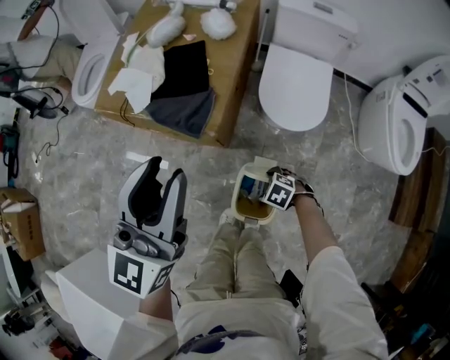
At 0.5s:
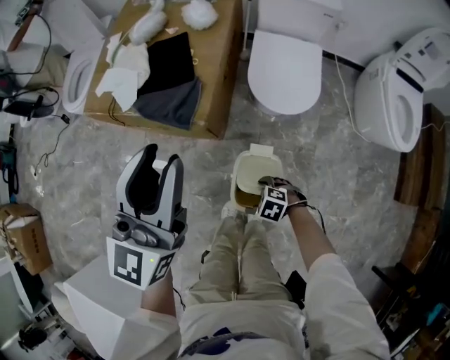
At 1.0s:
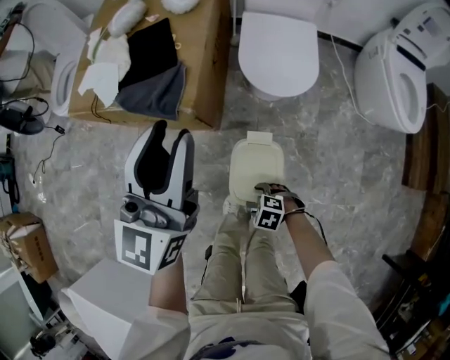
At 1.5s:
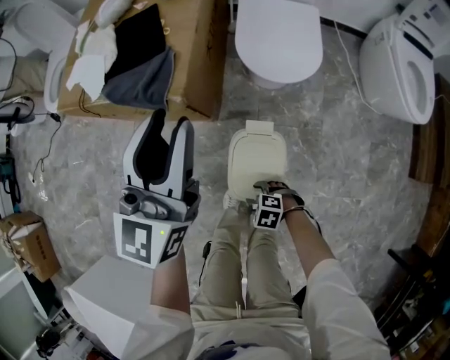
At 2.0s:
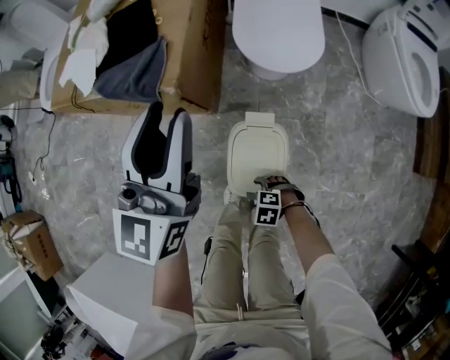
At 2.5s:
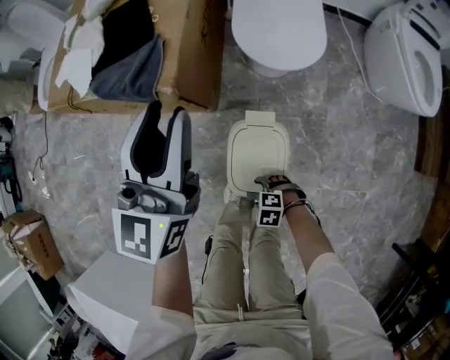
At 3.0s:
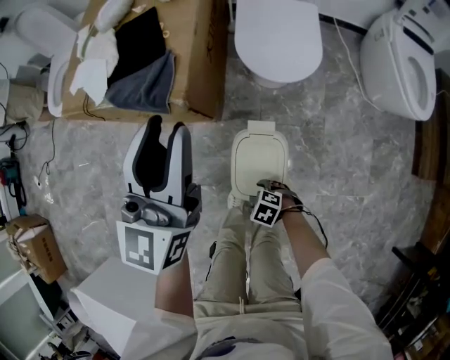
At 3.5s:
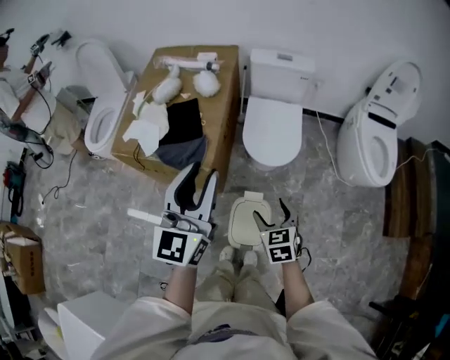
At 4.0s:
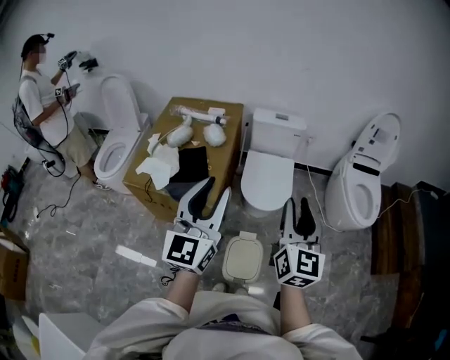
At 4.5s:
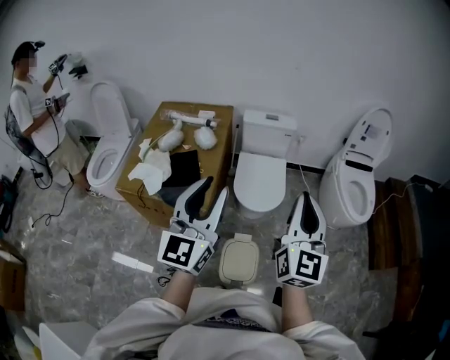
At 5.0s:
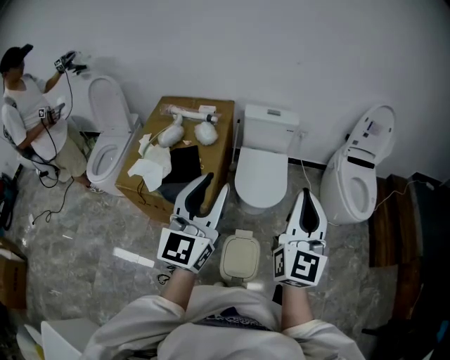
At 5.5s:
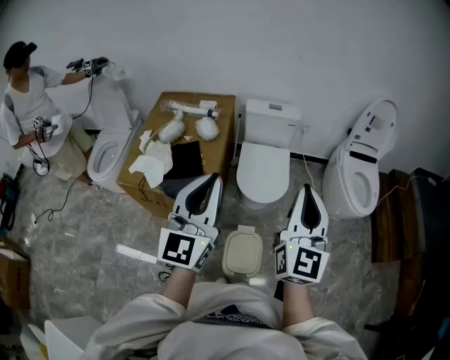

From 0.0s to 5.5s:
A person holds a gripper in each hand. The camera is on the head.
From 0.0s to 2.0s: The right gripper changes place by approximately 25 cm. The left gripper is displaced downward by approximately 20 cm.
From 2.0s to 3.5s: The right gripper moves upward, about 40 cm, and changes its angle by approximately 70 degrees; the left gripper heads upward, covering about 20 cm.
From 3.5s to 5.5s: The right gripper shifts some 35 cm upward, angles its fingers upward, by some 50 degrees, and closes up. The left gripper travels upward by about 10 cm, and closes its fingers.

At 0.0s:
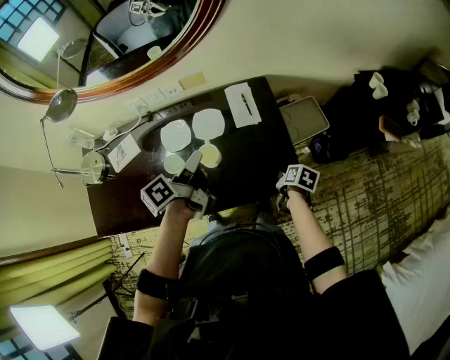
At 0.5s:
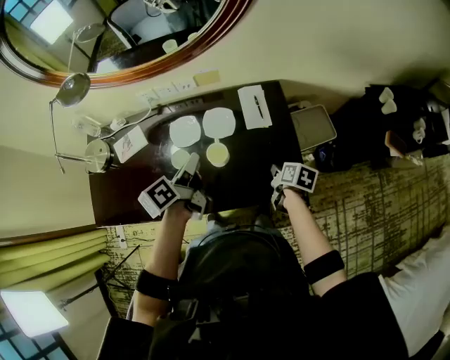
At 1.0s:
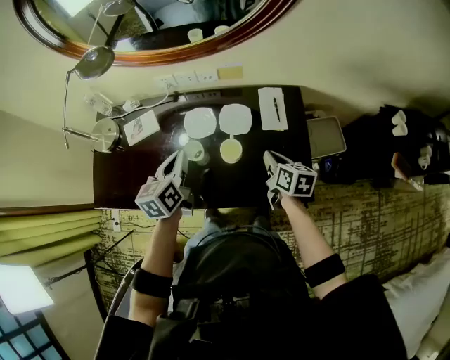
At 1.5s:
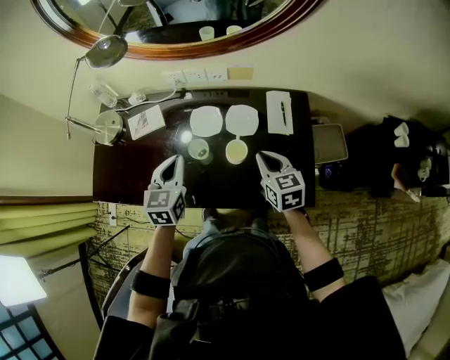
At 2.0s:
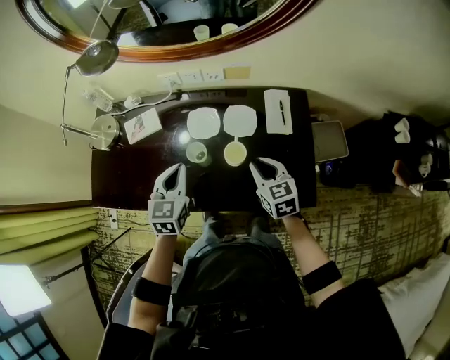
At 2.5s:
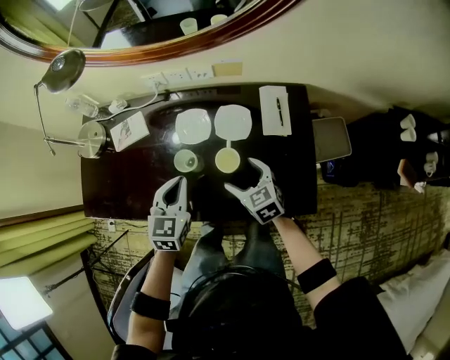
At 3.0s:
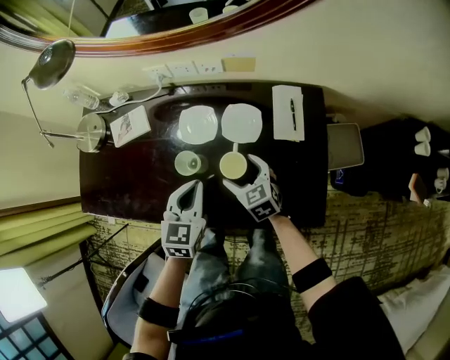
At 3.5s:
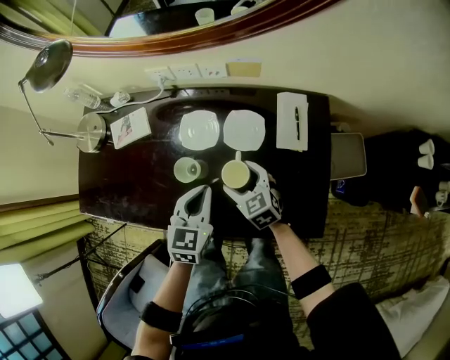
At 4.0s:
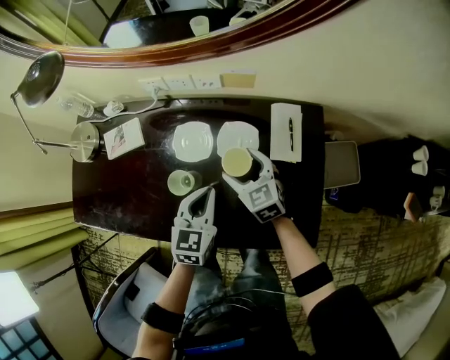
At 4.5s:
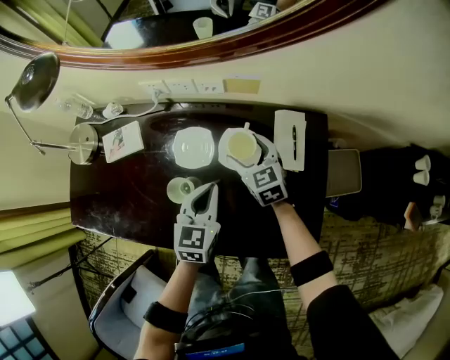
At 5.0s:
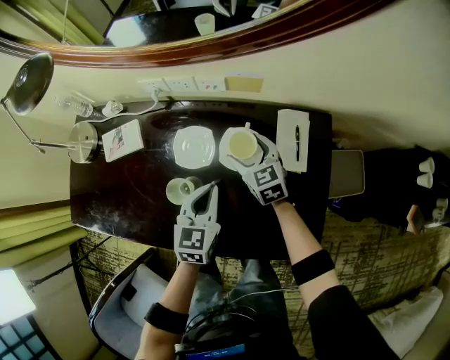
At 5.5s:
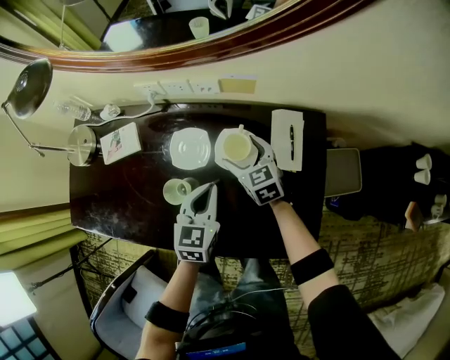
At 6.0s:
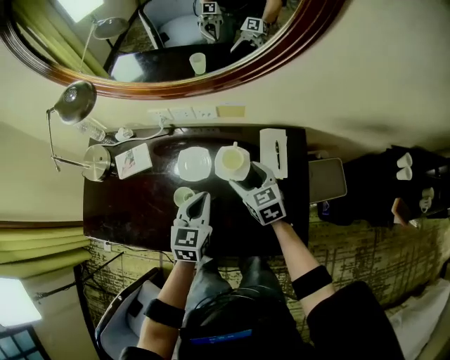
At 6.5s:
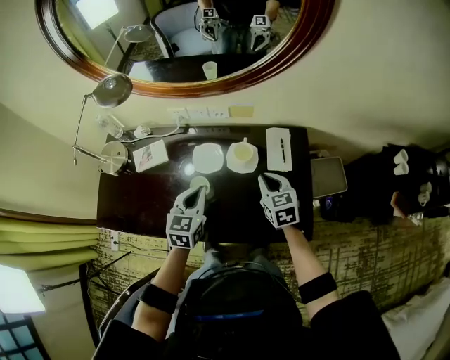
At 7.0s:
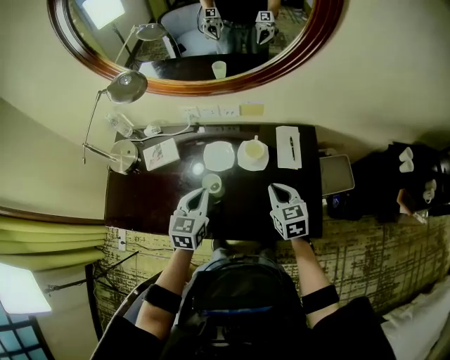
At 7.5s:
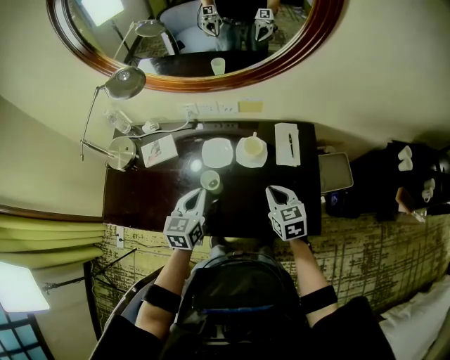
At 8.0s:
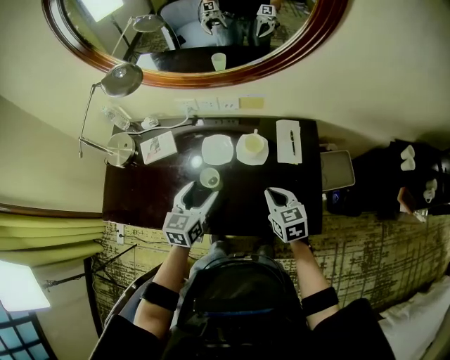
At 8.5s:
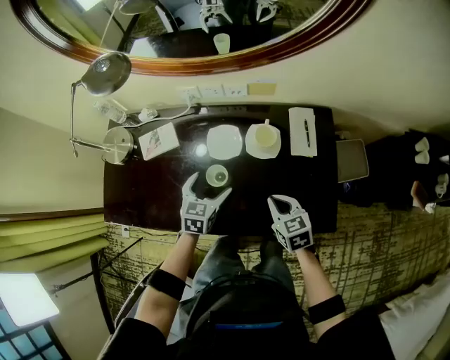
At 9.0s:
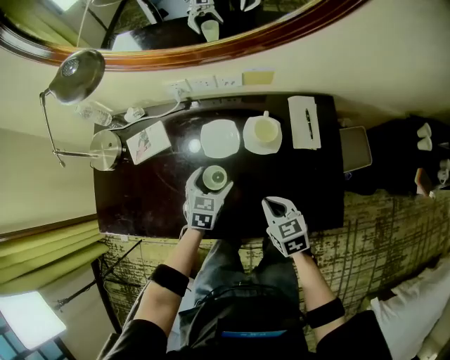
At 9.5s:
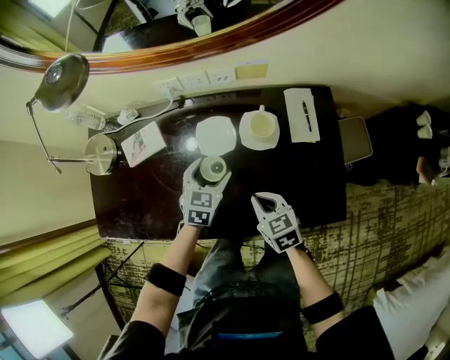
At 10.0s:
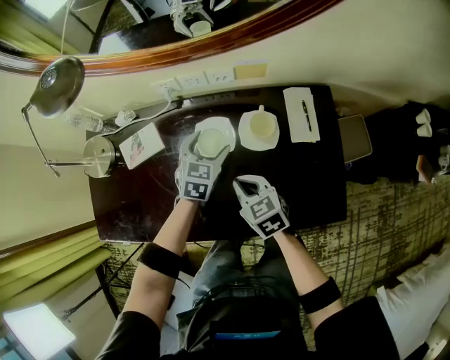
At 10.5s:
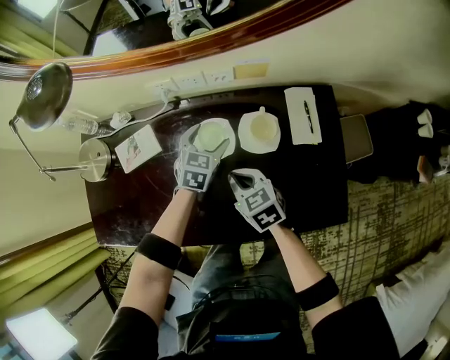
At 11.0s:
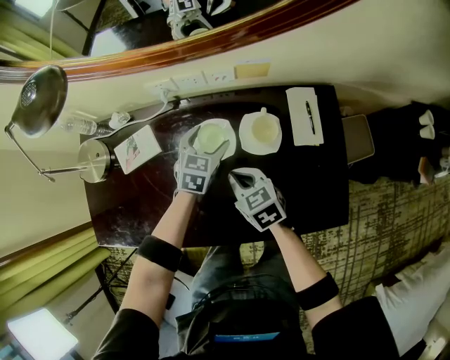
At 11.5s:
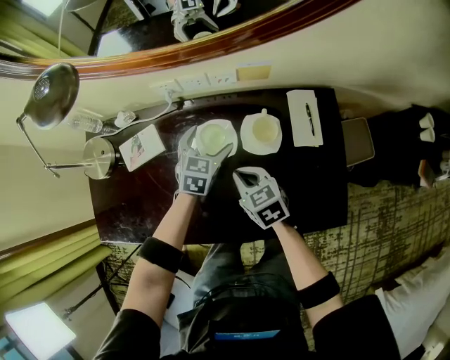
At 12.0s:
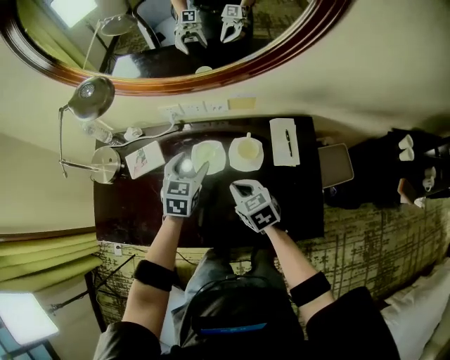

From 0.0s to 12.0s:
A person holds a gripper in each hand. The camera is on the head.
From 0.0s to 2.0s: The left gripper heads to the left, covering approximately 15 cm, and rotates around the line of its fingers by about 60 degrees, clockwise from behind. The right gripper shifts about 25 cm to the left, upward and forward, and rolls counterclockwise, seen from behind, by about 60 degrees.
From 2.0s to 4.0s: The left gripper heads to the right and downward, covering roughly 15 cm; the right gripper heads forward and downward, covering roughly 15 cm, and opens up.
From 4.0s to 6.0s: Both grippers travel together upward, roughly 5 cm.
From 6.0s to 8.0s: The left gripper shifts about 10 cm to the left and backward, and opens up; the right gripper shifts about 15 cm backward, and closes.
From 8.0s to 10.0s: The left gripper goes some 20 cm forward and downward, and turns by some 30 degrees; the right gripper shifts roughly 15 cm to the left, downward and forward.
From 10.0s to 12.0s: The right gripper shifts by about 5 cm, while the left gripper shifts roughly 10 cm upward.

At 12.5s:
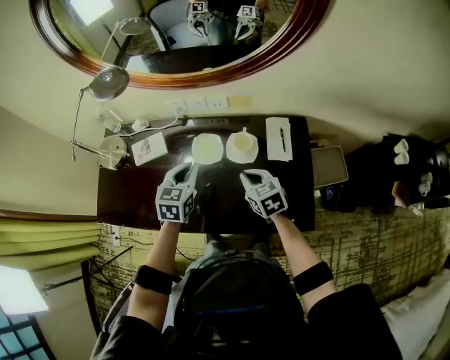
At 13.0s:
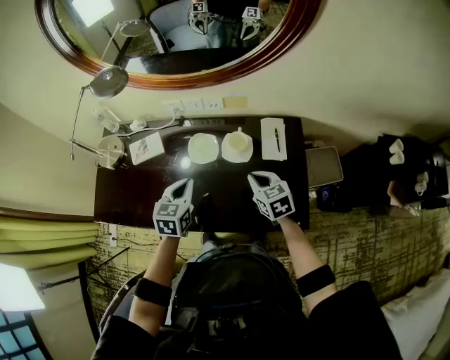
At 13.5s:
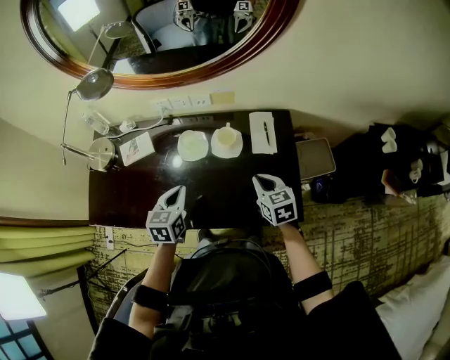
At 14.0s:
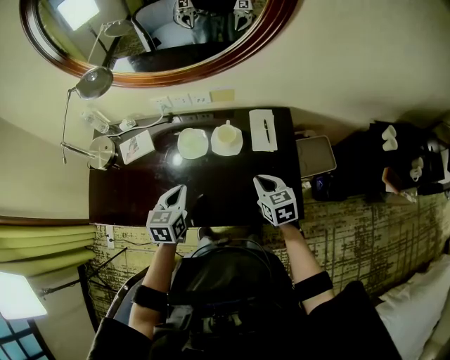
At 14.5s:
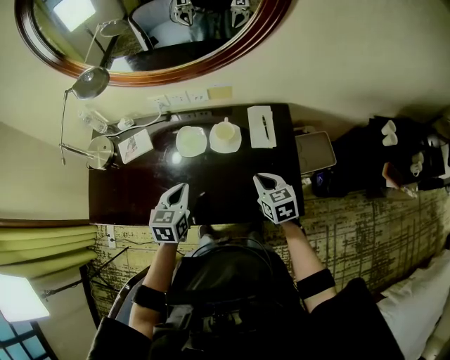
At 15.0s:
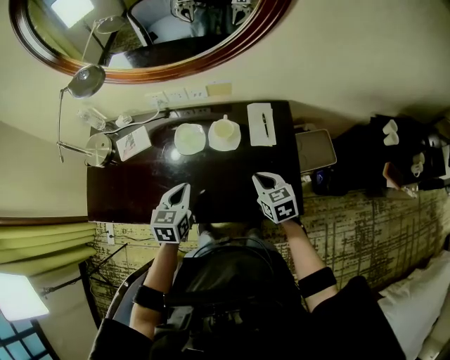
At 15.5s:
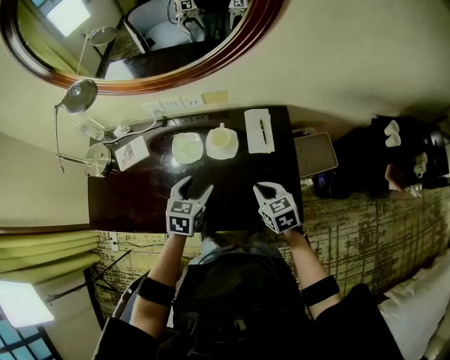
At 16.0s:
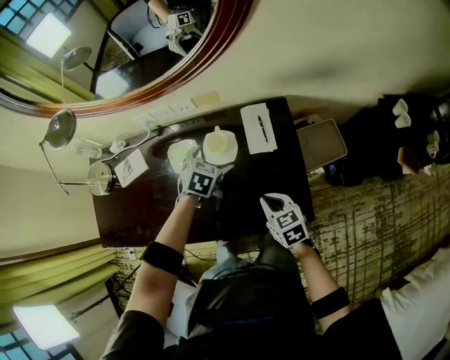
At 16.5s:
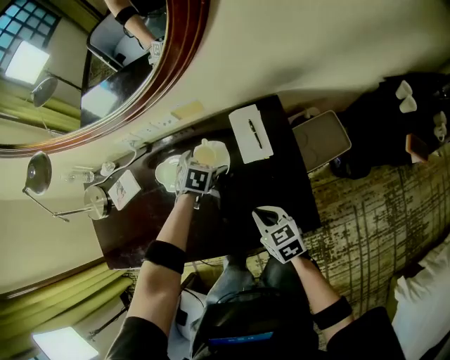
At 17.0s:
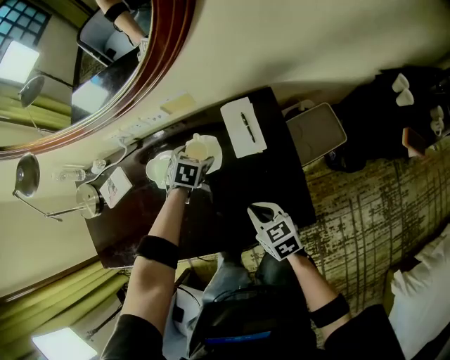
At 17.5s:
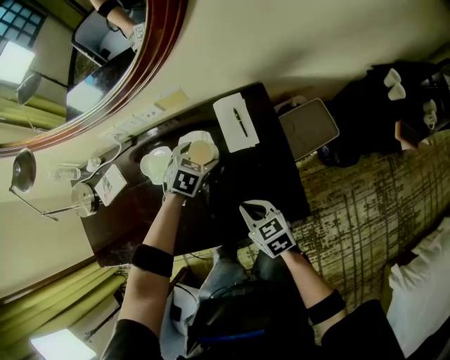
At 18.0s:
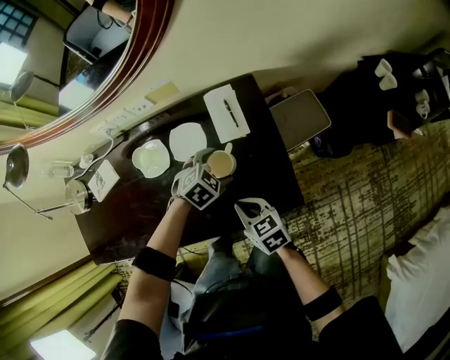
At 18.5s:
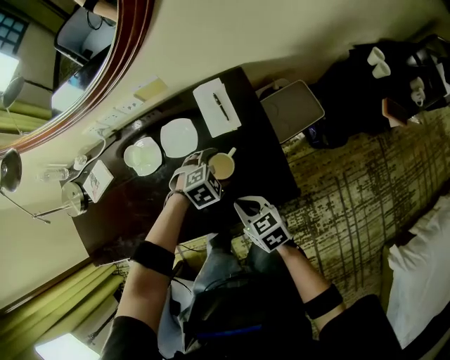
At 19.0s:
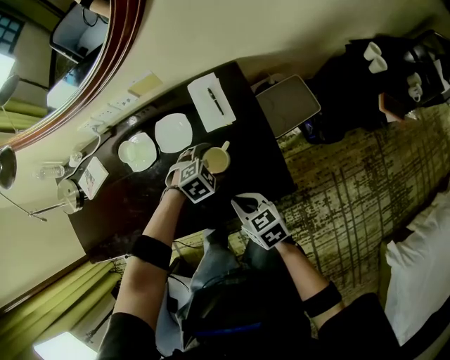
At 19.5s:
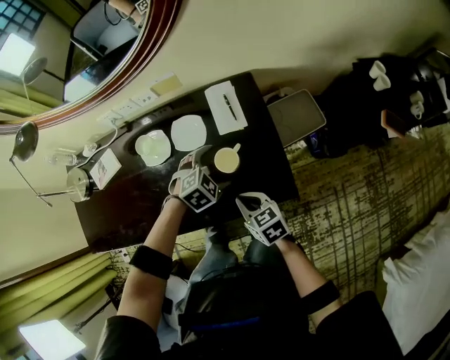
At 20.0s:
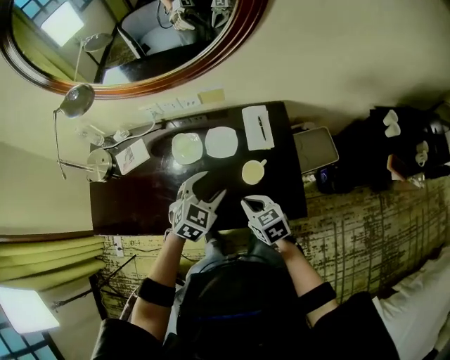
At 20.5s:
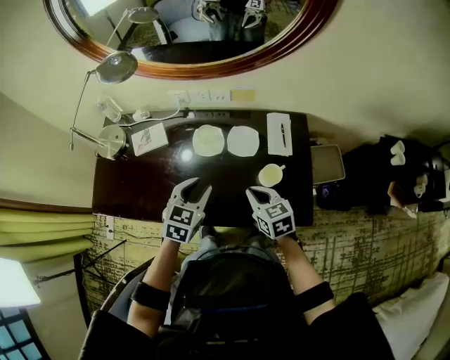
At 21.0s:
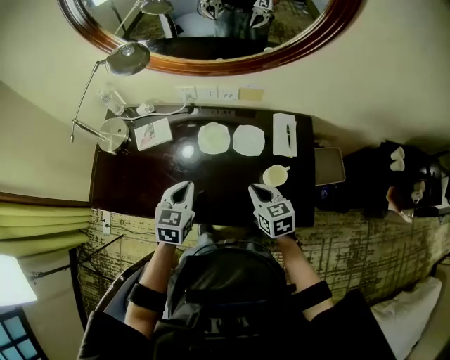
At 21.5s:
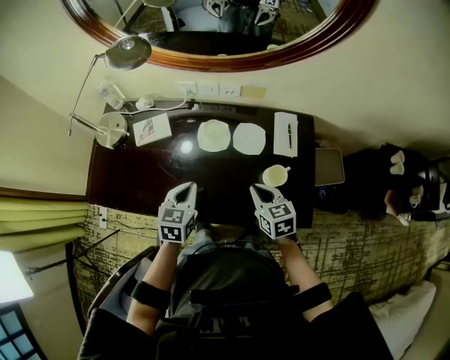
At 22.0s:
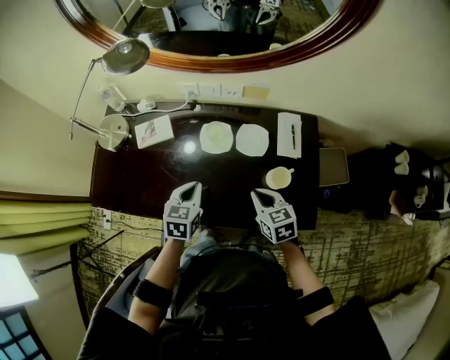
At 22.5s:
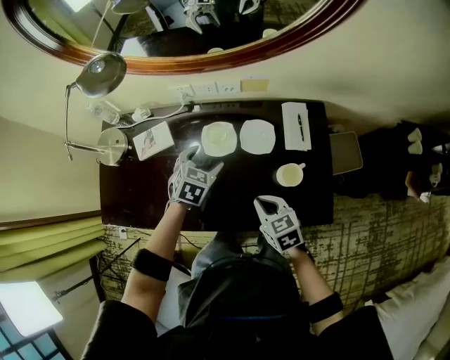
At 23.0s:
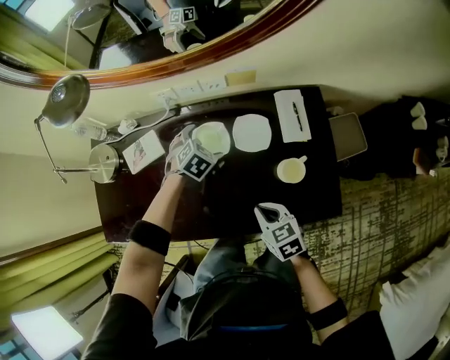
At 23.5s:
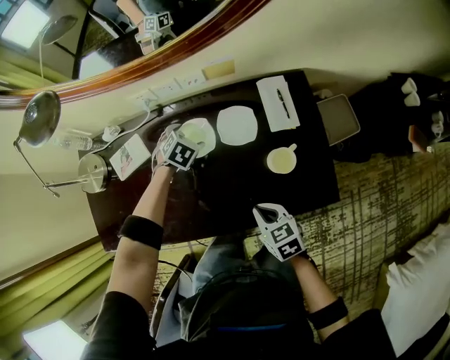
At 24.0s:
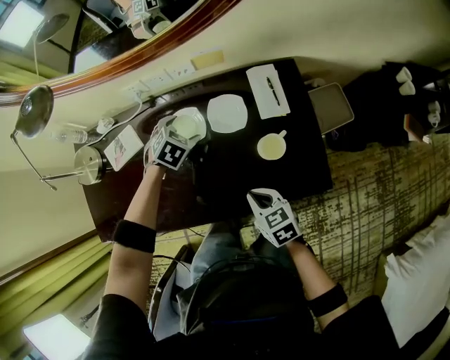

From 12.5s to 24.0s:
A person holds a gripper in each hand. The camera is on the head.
From 12.5s to 14.5s: The right gripper travels to the right and backward by approximately 10 cm, while the left gripper shifts roughly 10 cm backward.
From 14.5s to 16.5s: The left gripper travels forward, to the right and downward by roughly 30 cm, angles its fingers downward, by roughly 30 degrees, and opens up; the right gripper goes approximately 10 cm downward.
From 16.5s to 18.5s: The left gripper shifts by about 20 cm, and twists some 50 degrees clockwise, seen from behind, while the right gripper shifts by about 5 cm.
From 18.5s to 20.0s: The left gripper shifts roughly 20 cm upward and to the left, and changes its angle by approximately 40 degrees. The right gripper goes approximately 10 cm upward and to the left.
From 20.0s to 22.0s: The left gripper is displaced to the left by some 20 cm, swivels about 40 degrees, and closes up; the right gripper travels to the left and forward by about 10 cm.
From 22.0s to 24.0s: The right gripper moves downward and backward, roughly 10 cm. The left gripper moves forward, downward and to the right, approximately 20 cm, changes its angle by approximately 50 degrees, and opens its fingers.
